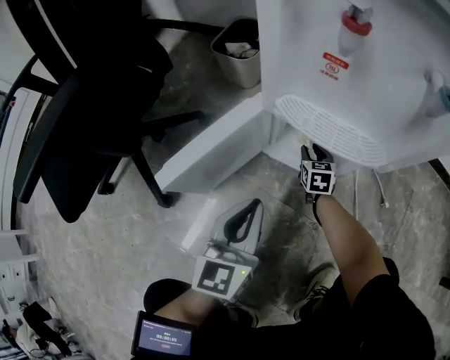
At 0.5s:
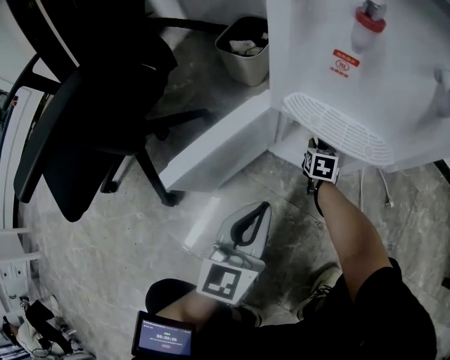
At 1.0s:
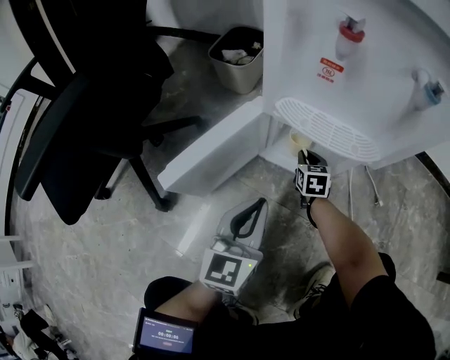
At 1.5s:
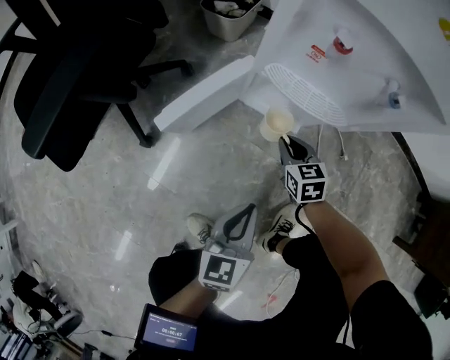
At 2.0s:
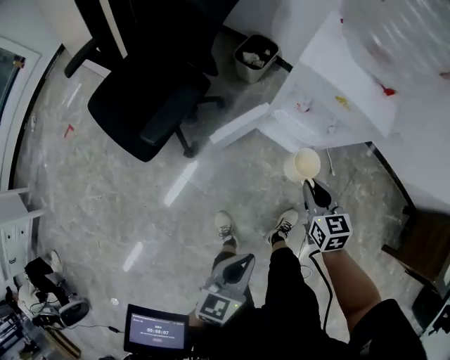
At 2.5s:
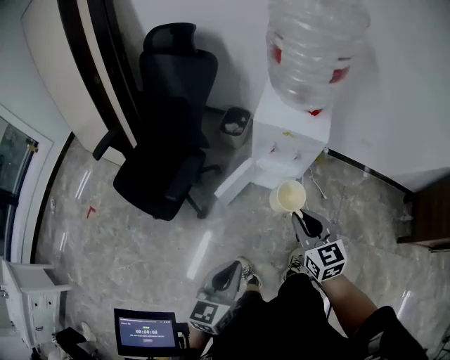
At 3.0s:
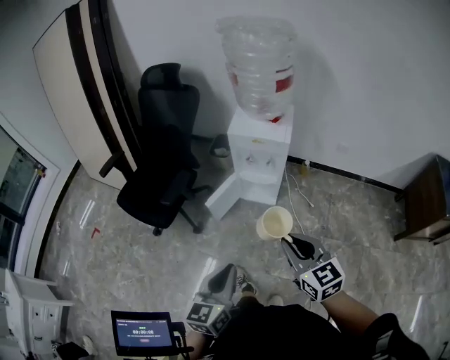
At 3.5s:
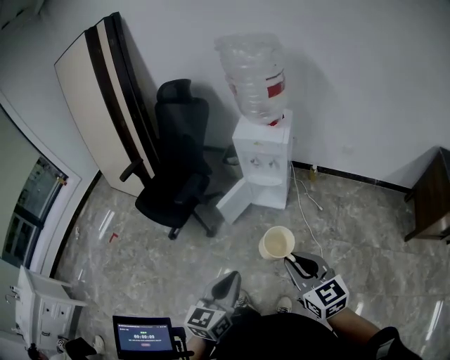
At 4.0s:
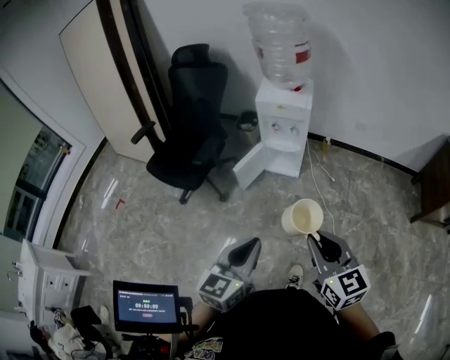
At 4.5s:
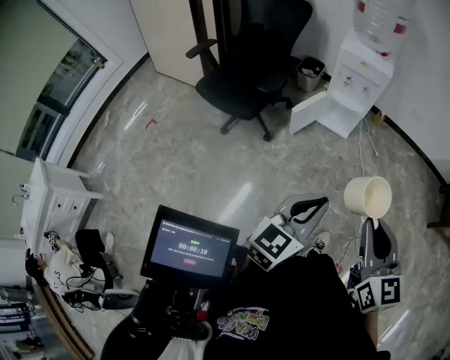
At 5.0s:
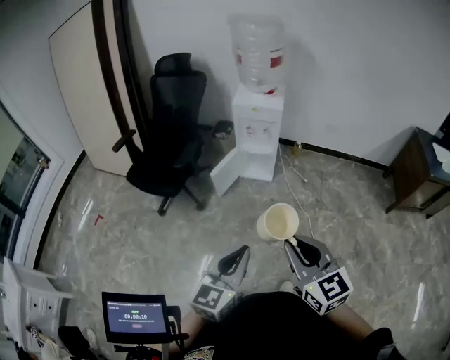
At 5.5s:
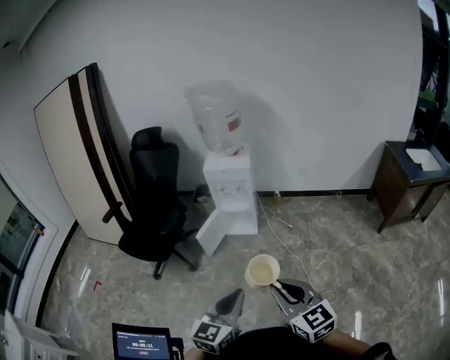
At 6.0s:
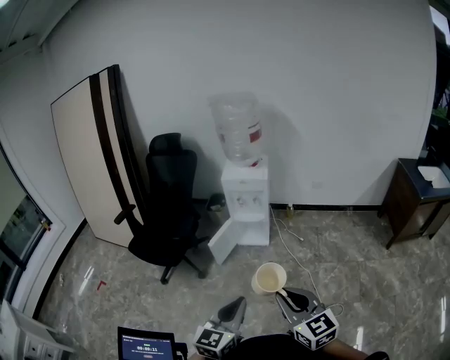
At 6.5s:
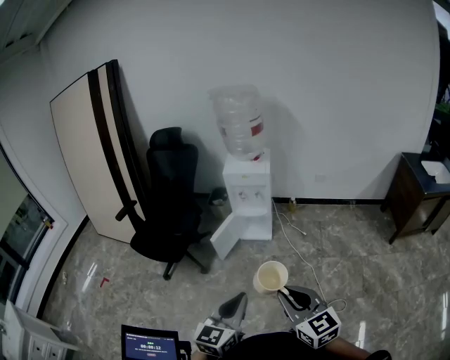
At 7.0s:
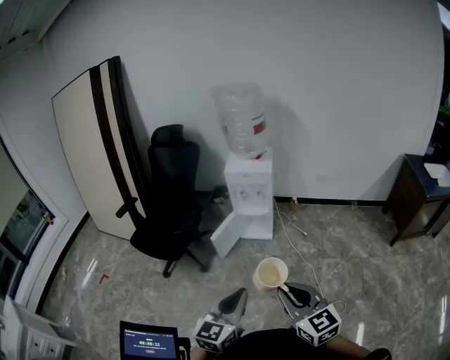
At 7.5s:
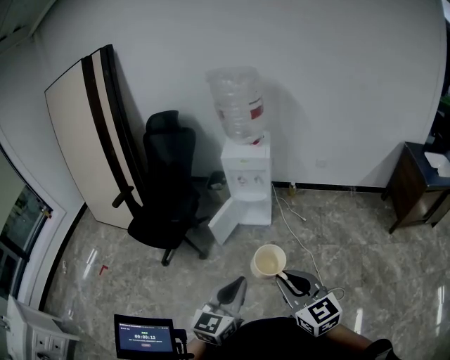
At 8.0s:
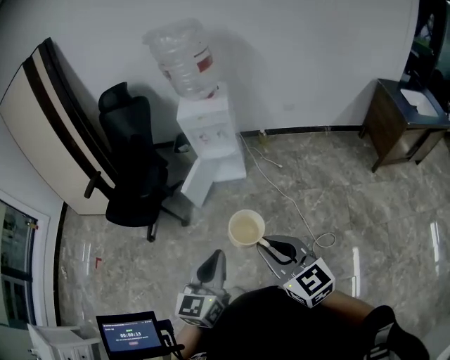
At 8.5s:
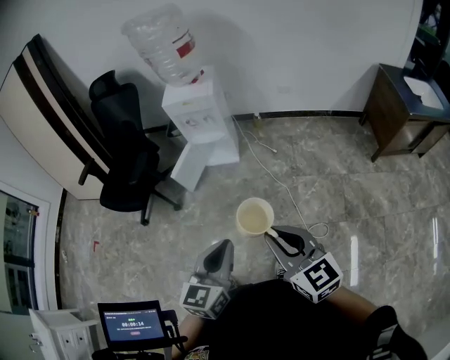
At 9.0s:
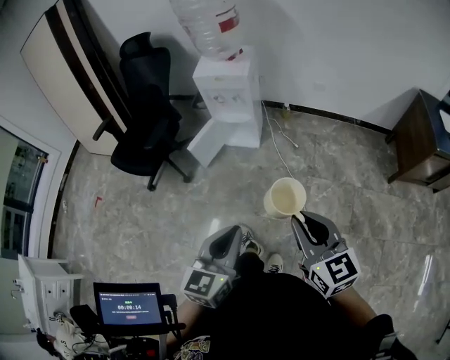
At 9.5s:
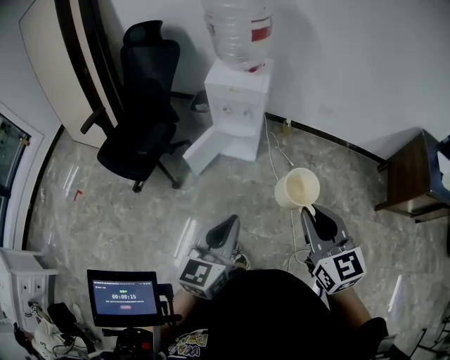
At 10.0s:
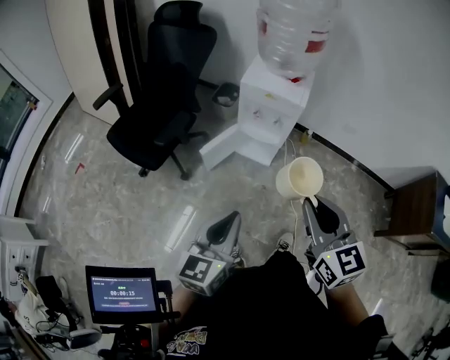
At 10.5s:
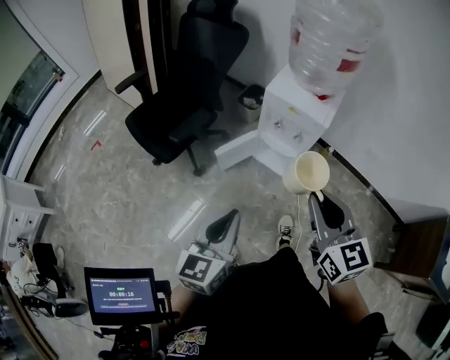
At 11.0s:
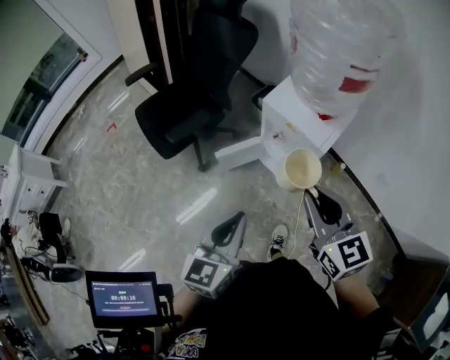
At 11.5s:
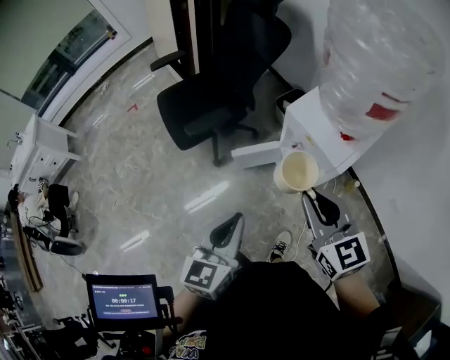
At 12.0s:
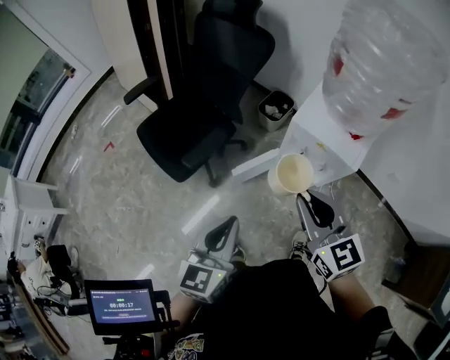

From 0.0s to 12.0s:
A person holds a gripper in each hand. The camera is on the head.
From 0.0s to 2.0s: Both grippers move upward and backward, about 50 cm. The right gripper closes its fingers. The left gripper rotates some 20 degrees.
From 2.0s to 4.0s: The right gripper shifts some 60 cm backward and upward, and rotates approximately 20 degrees. The left gripper is displaced upward and backward by approximately 35 cm, and turns by some 20 degrees.
From 4.0s to 6.0s: The left gripper swings left and right, about 10 cm each way, with 2 reversals. The right gripper goes roughly 10 cm backward.
From 6.0s to 8.0s: The grippers make only small movements.
From 8.0s to 10.0s: Both grippers travel together forward, roughly 25 cm.
From 10.0s to 12.0s: The left gripper shifts by about 20 cm, while the right gripper changes place by some 25 cm, and changes its angle by some 20 degrees.

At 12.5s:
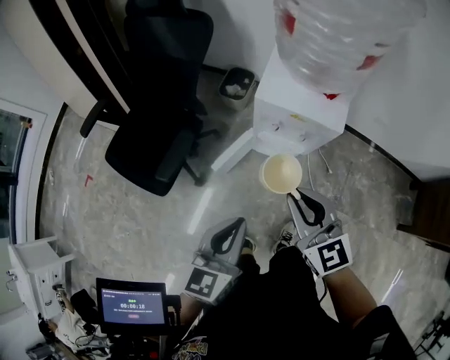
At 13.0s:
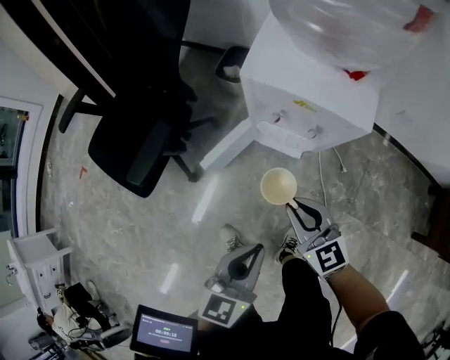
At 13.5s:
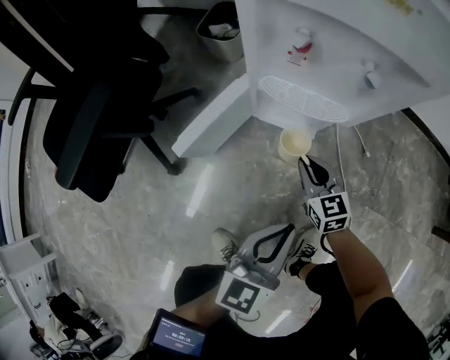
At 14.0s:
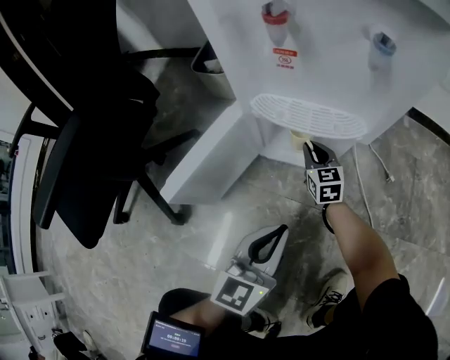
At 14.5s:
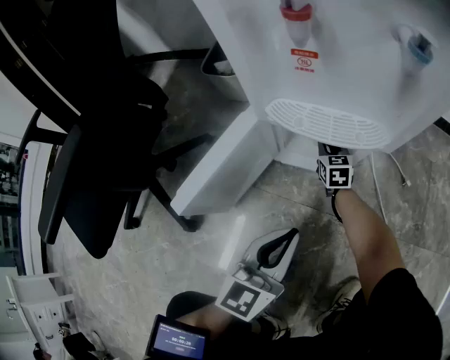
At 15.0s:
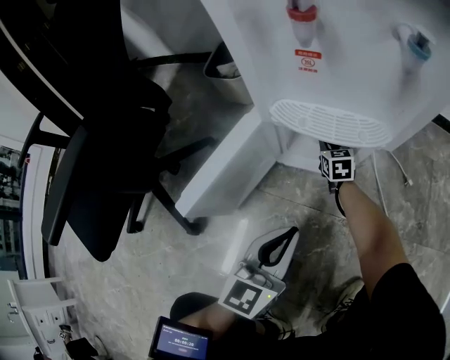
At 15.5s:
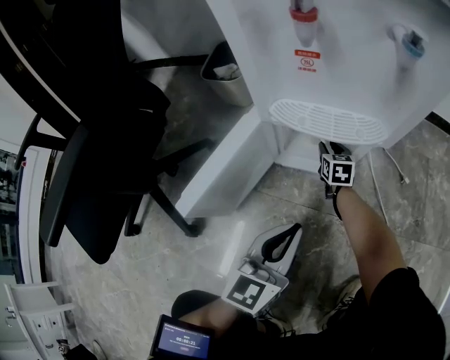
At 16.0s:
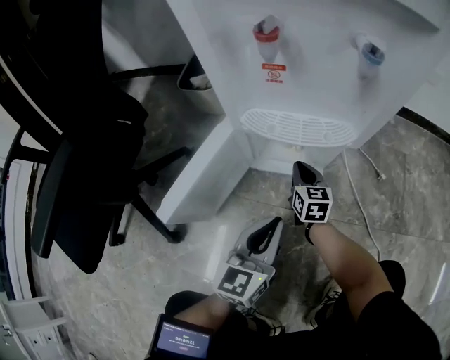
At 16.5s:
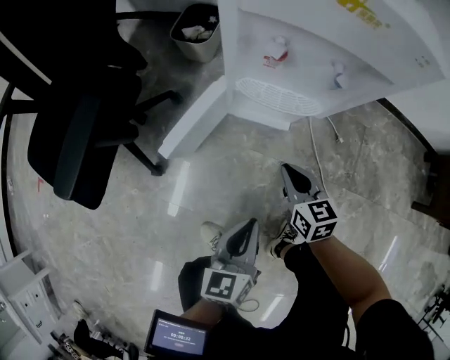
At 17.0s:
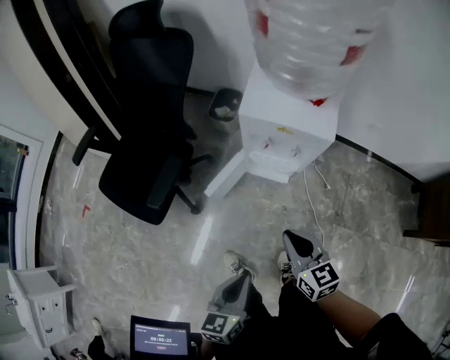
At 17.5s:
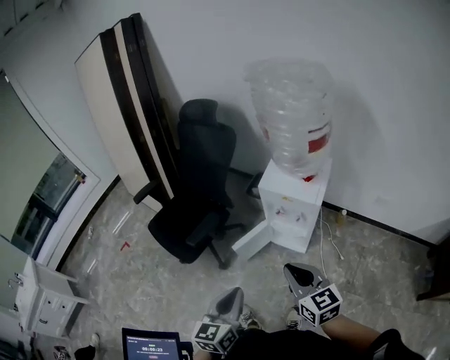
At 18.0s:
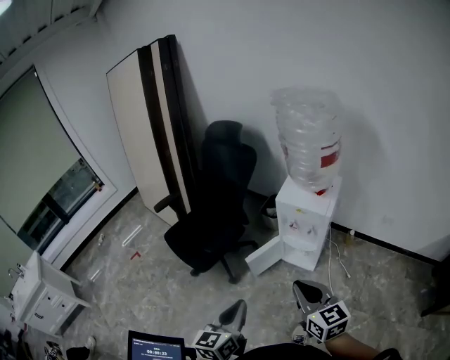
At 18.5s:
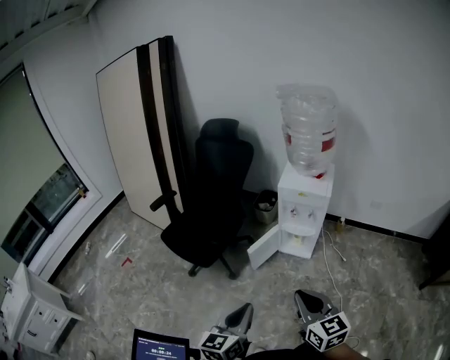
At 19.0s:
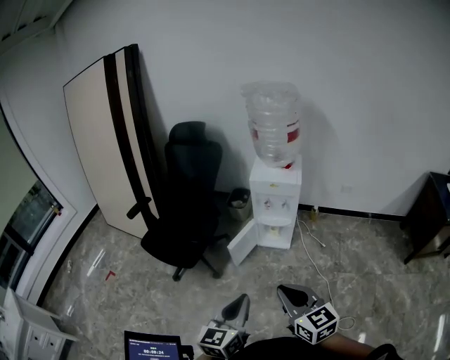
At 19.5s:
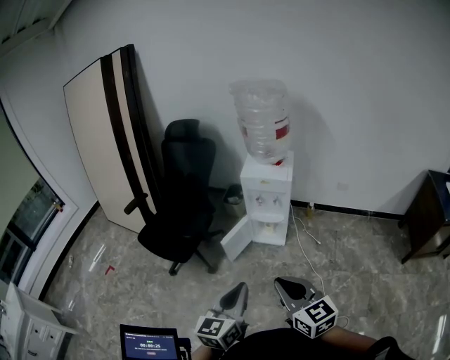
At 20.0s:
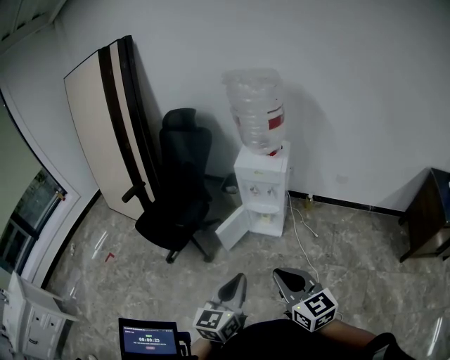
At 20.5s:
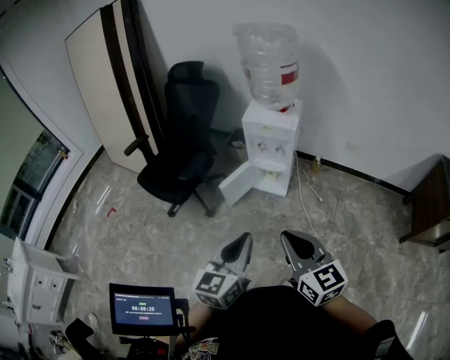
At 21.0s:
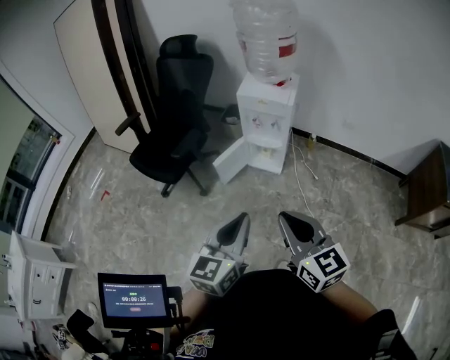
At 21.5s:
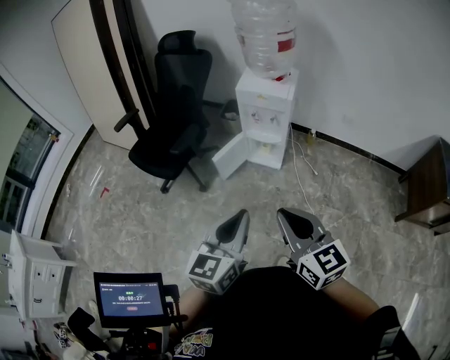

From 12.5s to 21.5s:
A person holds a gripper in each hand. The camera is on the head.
From 12.5s to 14.5s: The two grippers go roughly 70 cm downward. The right gripper rotates roughly 30 degrees.
From 14.5s to 17.0s: The left gripper travels upward and backward by roughly 50 cm, and swivels some 30 degrees, while the right gripper goes approximately 70 cm upward and backward, changes its angle by roughly 20 degrees, and opens, then closes again.
From 17.0s to 19.5s: The left gripper heads upward and backward, covering roughly 30 cm, and changes its angle by some 30 degrees; the right gripper travels backward and upward by about 35 cm.
From 19.5s to 21.5s: Both grippers travel together to the right, approximately 5 cm.

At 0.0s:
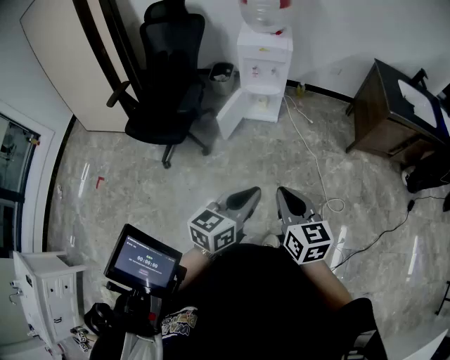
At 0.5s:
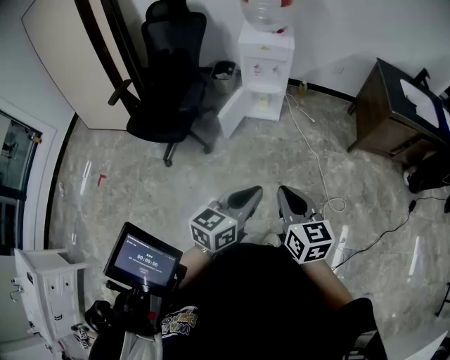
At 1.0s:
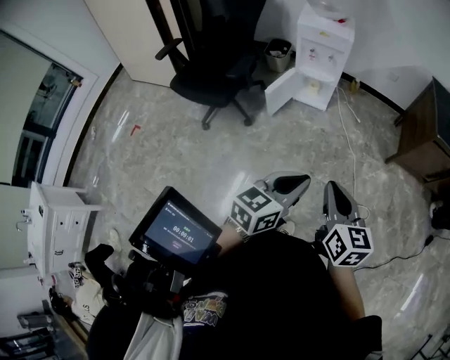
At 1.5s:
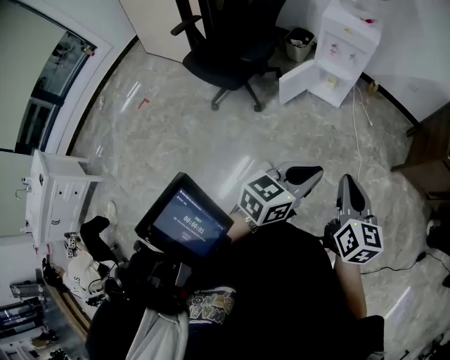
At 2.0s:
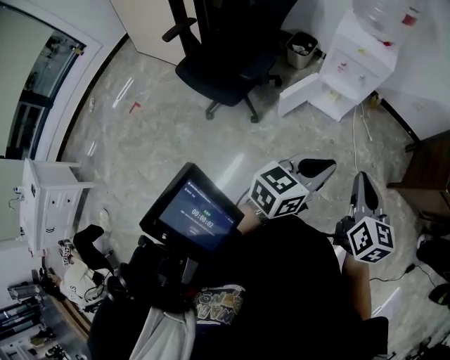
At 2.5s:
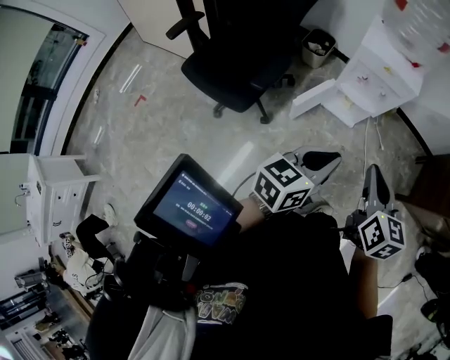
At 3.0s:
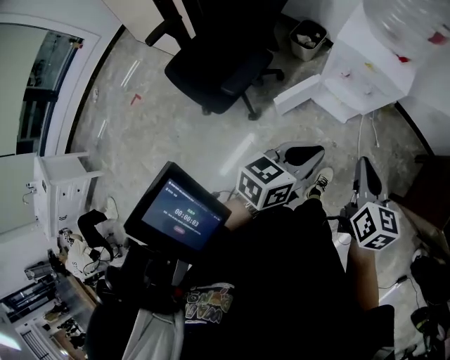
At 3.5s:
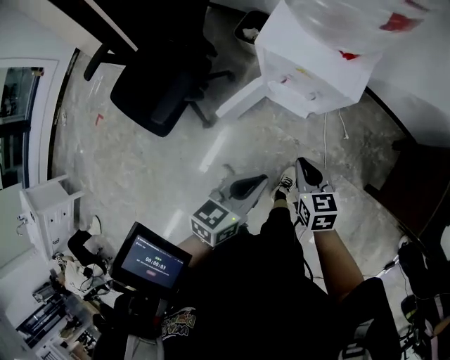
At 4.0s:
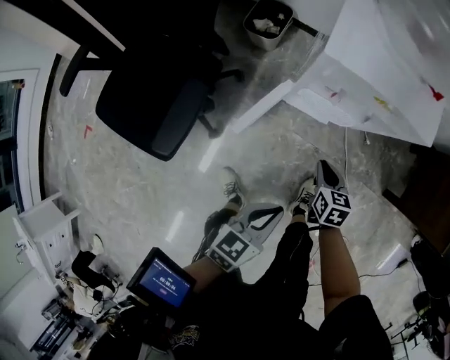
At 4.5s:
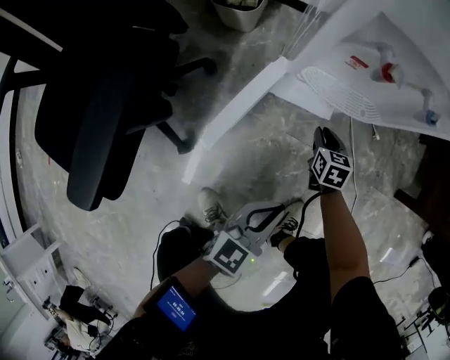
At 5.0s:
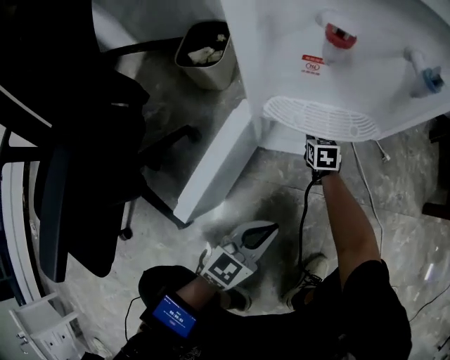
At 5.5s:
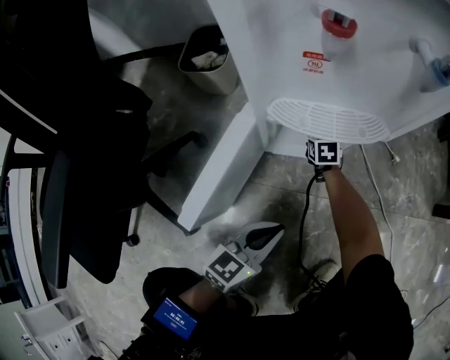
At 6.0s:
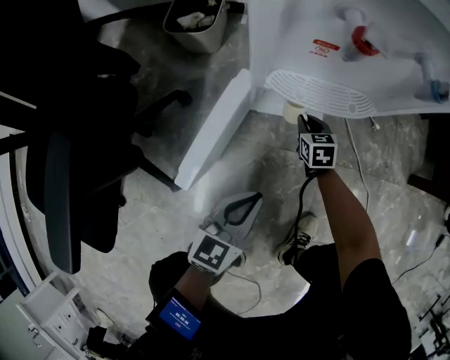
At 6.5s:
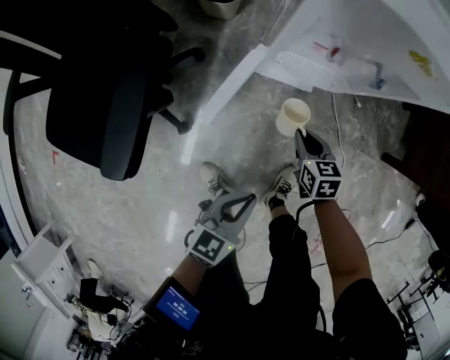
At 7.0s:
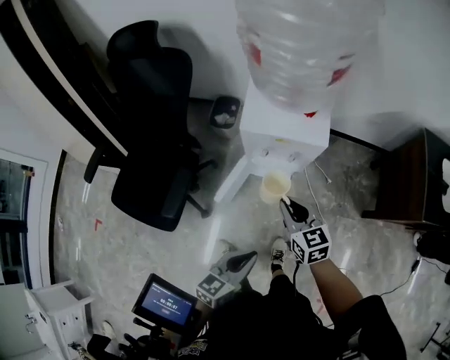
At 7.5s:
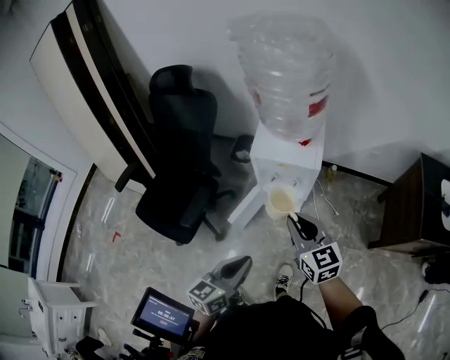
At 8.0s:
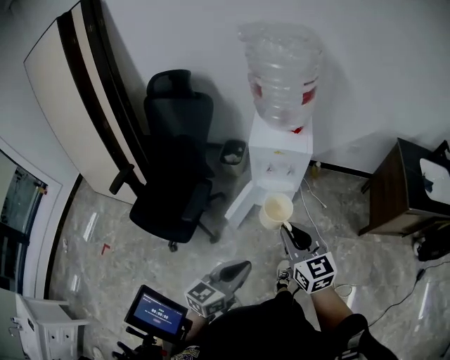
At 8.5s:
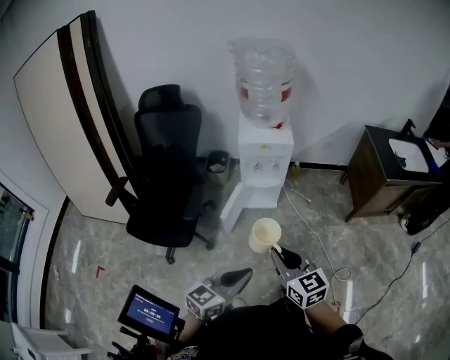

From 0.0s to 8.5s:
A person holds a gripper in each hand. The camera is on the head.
From 0.0s to 2.0s: The grippers both shift forward by roughly 20 cm.
From 2.0s to 4.0s: The grippers both shift downward and forward by roughly 50 cm. The right gripper swivels some 30 degrees. The left gripper rotates about 20 degrees.
From 4.0s to 6.5s: The right gripper reaches some 40 cm downward, then returns. Meanwhile the left gripper goes downward and returns, roughly 35 cm each way.
From 6.5s to 8.5s: Both grippers travel together upward and backward, approximately 60 cm. The left gripper rotates about 30 degrees, while the right gripper tilts its fingers about 30 degrees upward.
